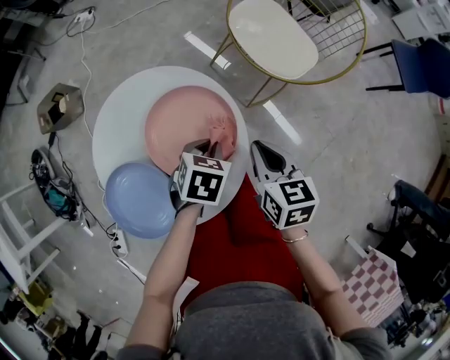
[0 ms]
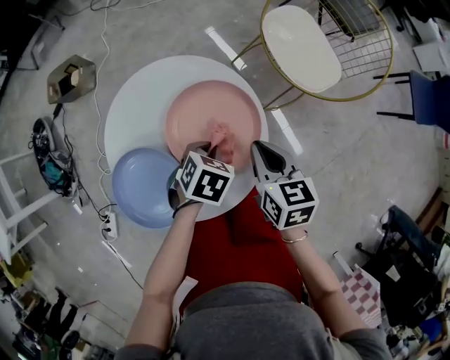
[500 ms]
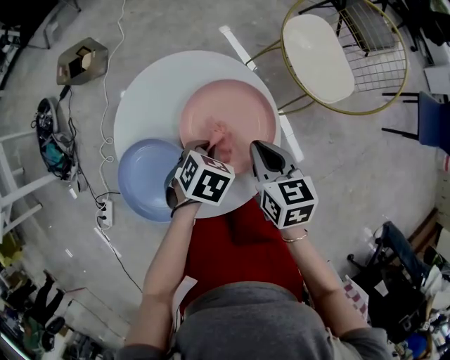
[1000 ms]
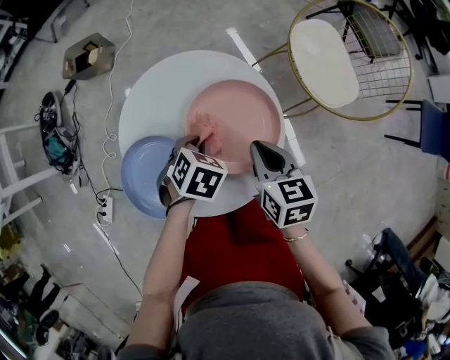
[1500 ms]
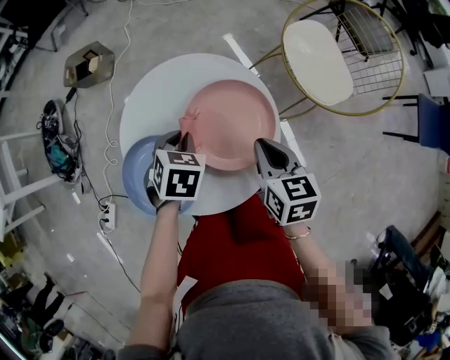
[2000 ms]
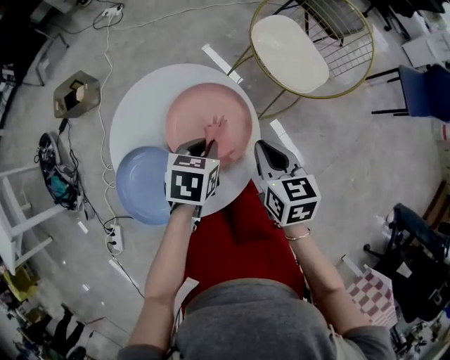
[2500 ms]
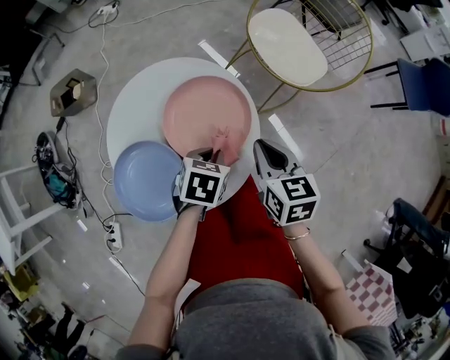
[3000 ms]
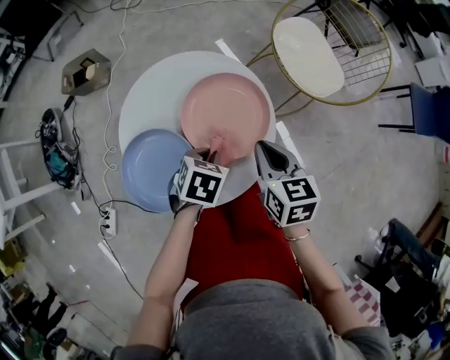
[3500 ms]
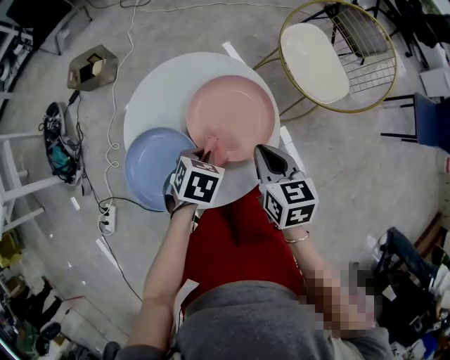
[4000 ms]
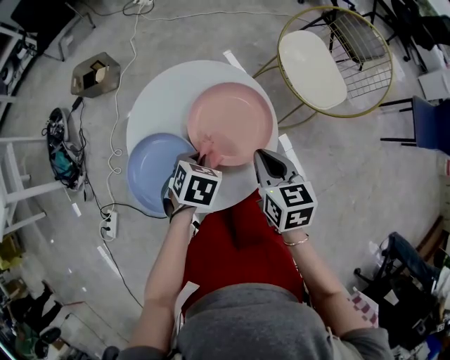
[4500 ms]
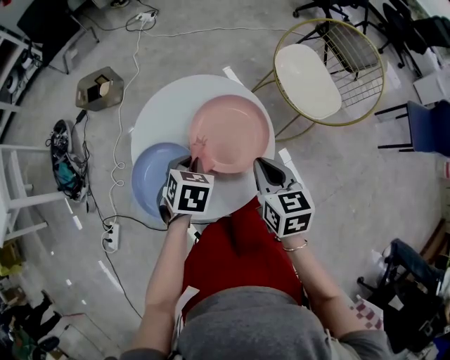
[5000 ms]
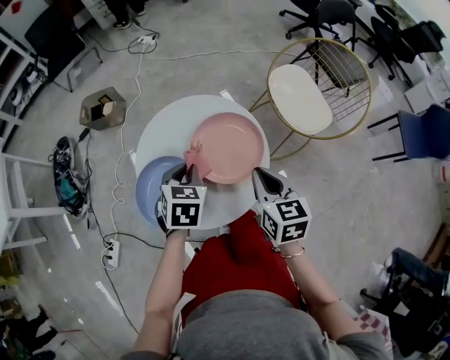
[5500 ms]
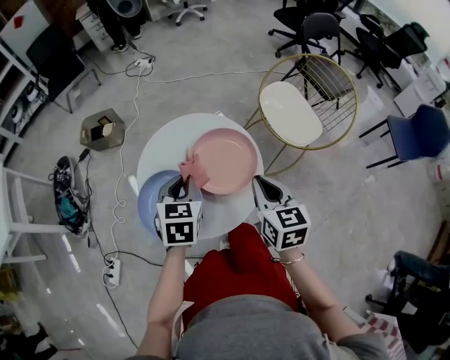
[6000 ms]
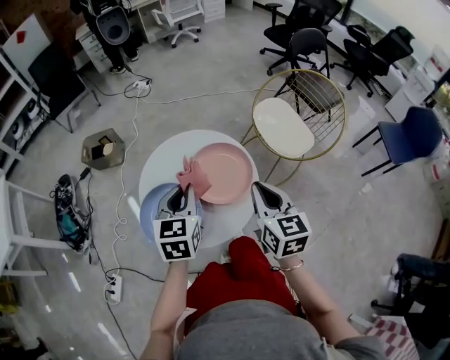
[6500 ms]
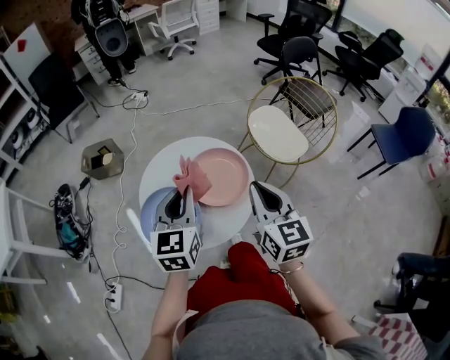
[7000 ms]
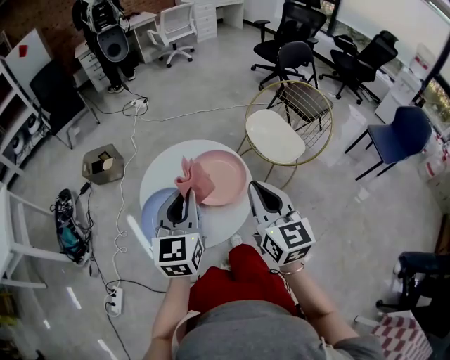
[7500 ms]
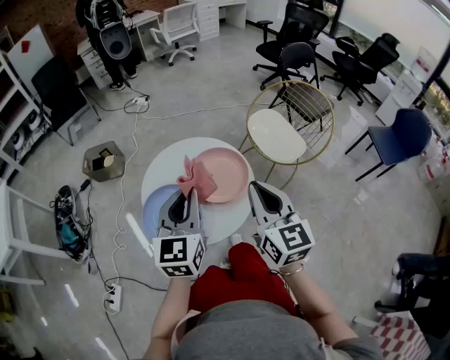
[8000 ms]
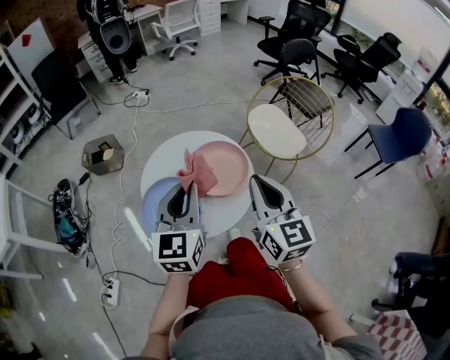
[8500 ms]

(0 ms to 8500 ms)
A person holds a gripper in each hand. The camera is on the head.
0 ms - 2000 ms: The right gripper changes place by roughly 10 cm, while the left gripper ends up roughly 20 cm from where it was, and rotates roughly 20 degrees.
4000 ms - 6500 ms: The right gripper shifts some 15 cm upward, and rotates approximately 20 degrees; the left gripper shifts some 20 cm upward, and points its fingers some 40 degrees further upward.
6500 ms - 8500 ms: The two grippers go some 10 cm upward and backward.

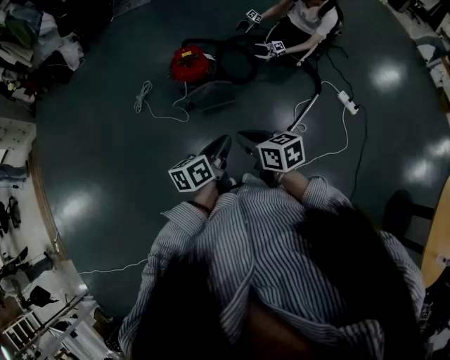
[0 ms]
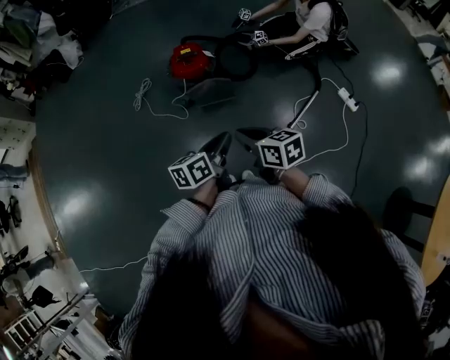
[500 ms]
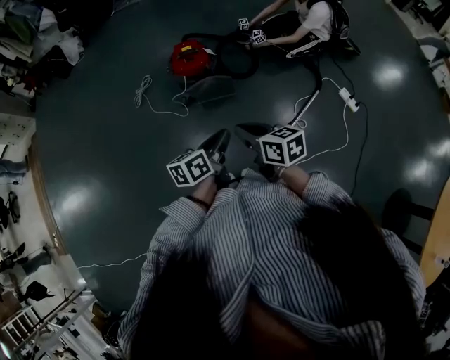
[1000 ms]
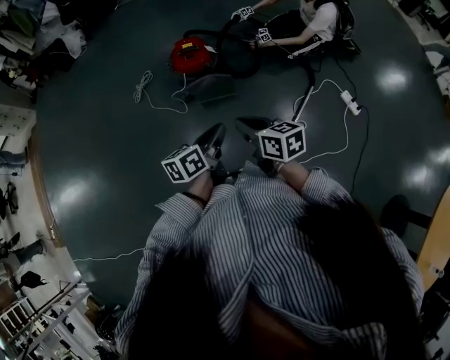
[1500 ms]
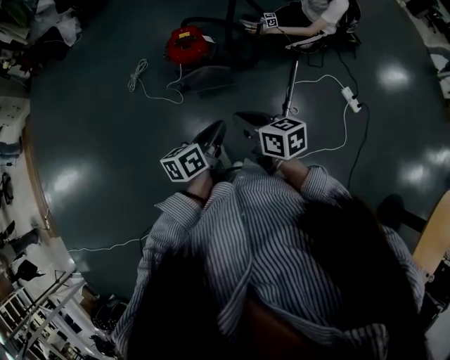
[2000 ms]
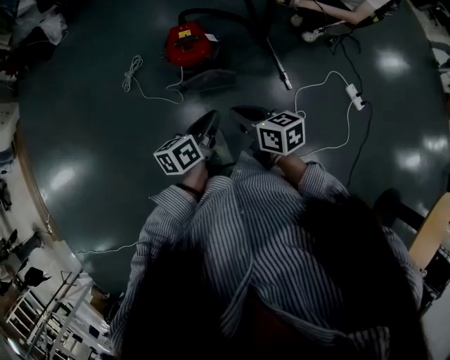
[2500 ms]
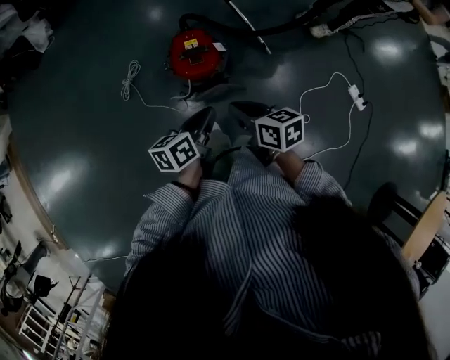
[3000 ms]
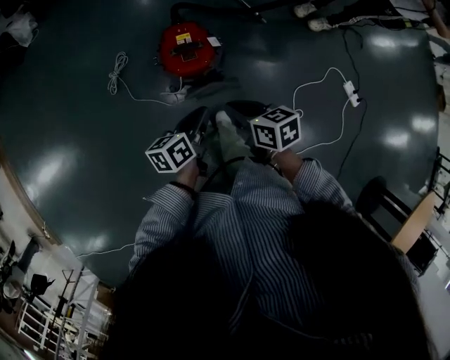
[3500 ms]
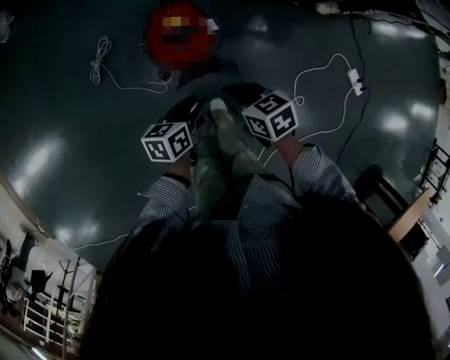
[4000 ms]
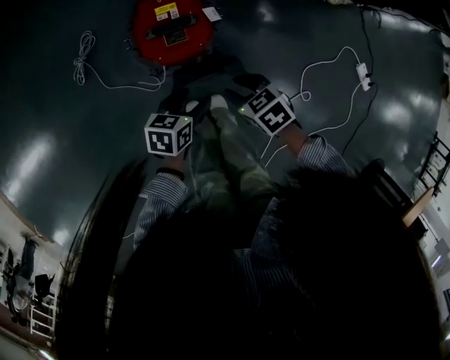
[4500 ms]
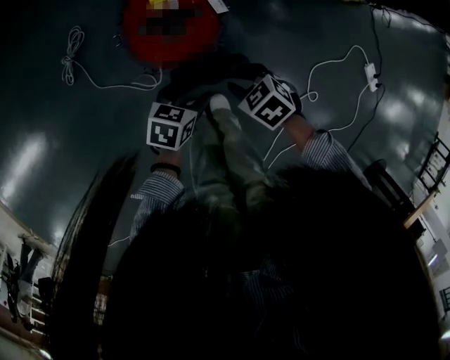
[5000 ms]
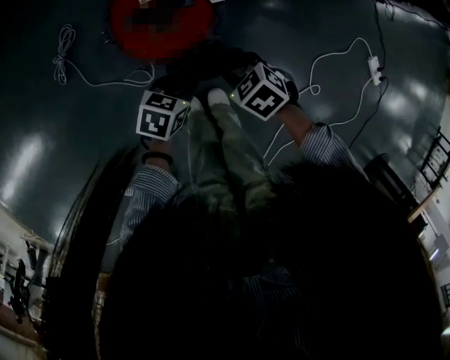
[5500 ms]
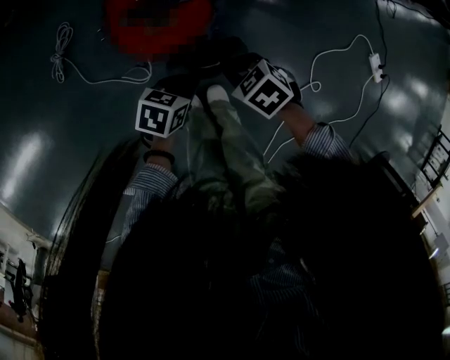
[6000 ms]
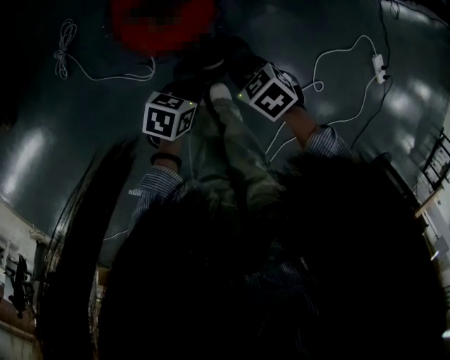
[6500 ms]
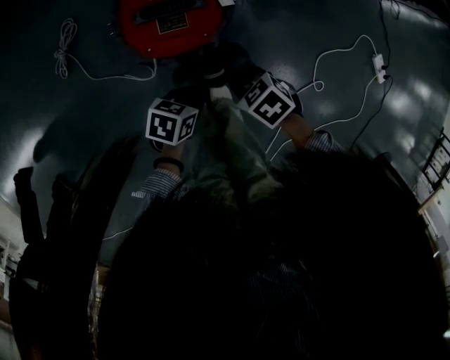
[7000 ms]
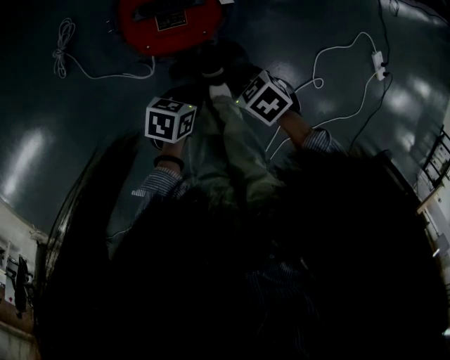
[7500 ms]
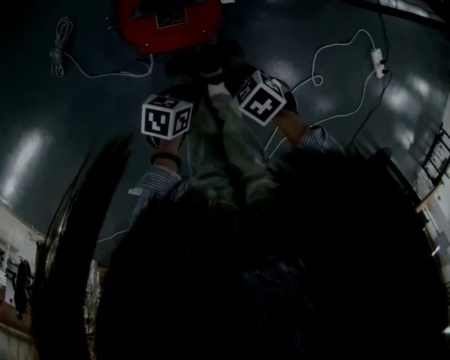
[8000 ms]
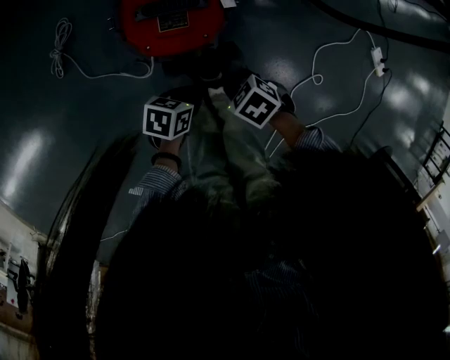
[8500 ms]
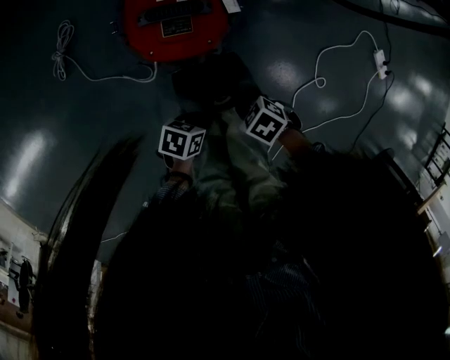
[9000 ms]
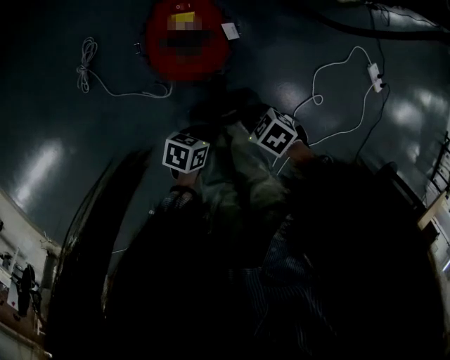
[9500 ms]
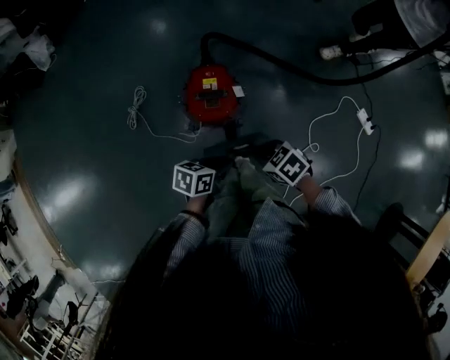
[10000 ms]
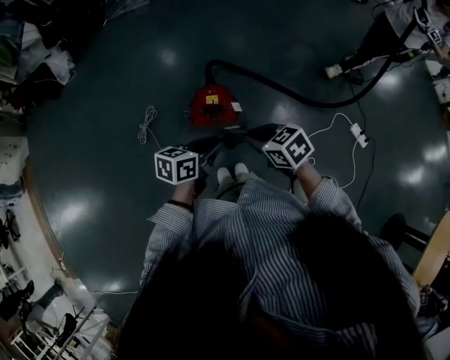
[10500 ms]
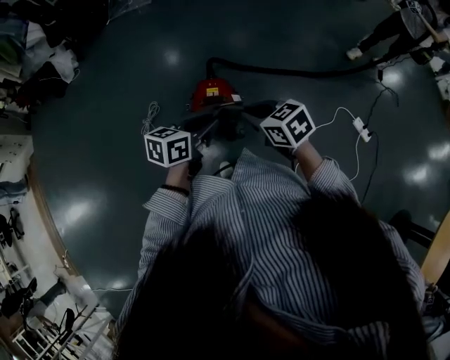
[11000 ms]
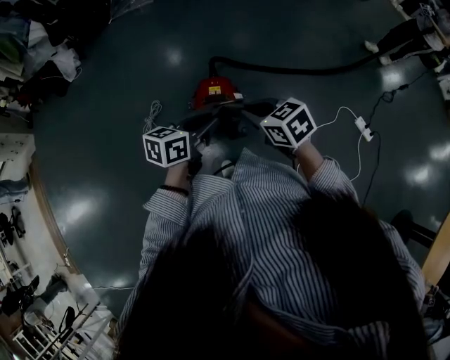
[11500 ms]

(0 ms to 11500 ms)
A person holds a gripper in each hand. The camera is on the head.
0 ms - 2000 ms: The right gripper ends up some 5 cm from where it was.
2000 ms - 4000 ms: Both grippers travel together forward and downward, approximately 40 cm. The right gripper rotates about 20 degrees, while the left gripper rotates roughly 20 degrees, and opens.
4000 ms - 6000 ms: The two grippers go some 25 cm downward. The left gripper swivels roughly 30 degrees, and closes its fingers. Meanwhile the right gripper rotates approximately 30 degrees, and opens, then closes once more.
6000 ms - 7500 ms: The right gripper changes place by some 5 cm.
7500 ms - 9500 ms: The grippers both shift upward by roughly 10 cm.
9500 ms - 11500 ms: Both grippers move upward, some 50 cm. The left gripper rotates about 40 degrees. Meanwhile the right gripper swivels some 40 degrees.

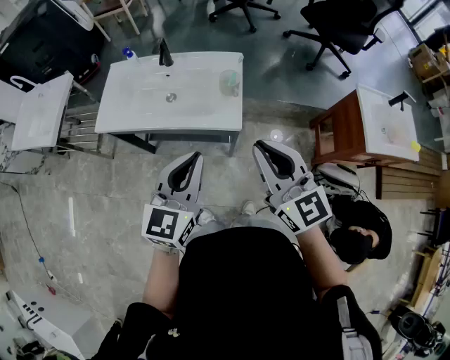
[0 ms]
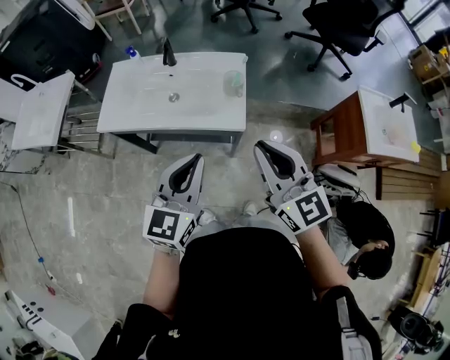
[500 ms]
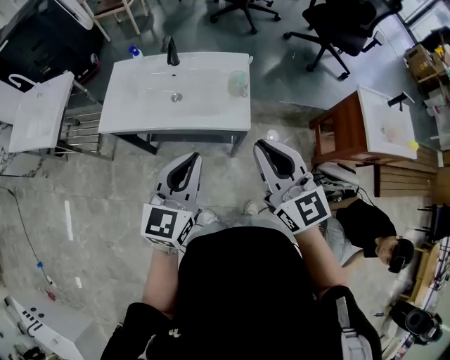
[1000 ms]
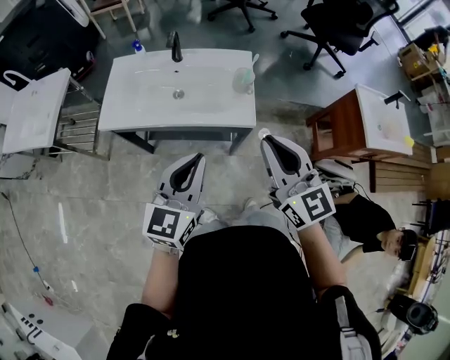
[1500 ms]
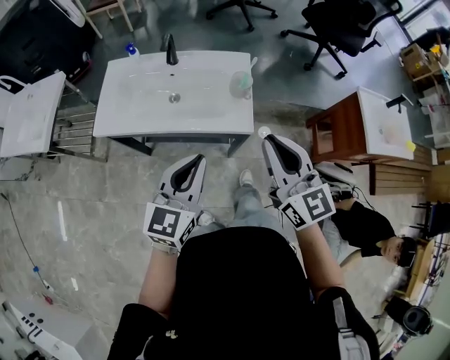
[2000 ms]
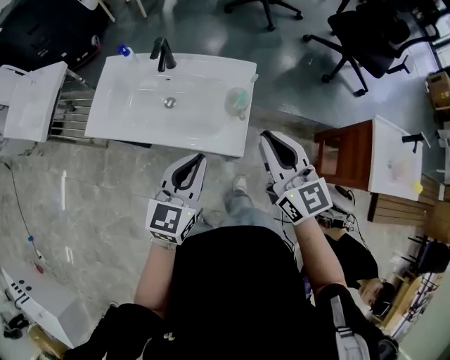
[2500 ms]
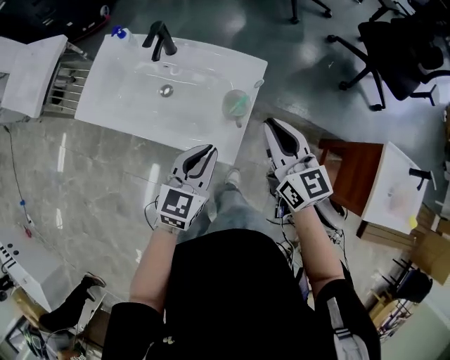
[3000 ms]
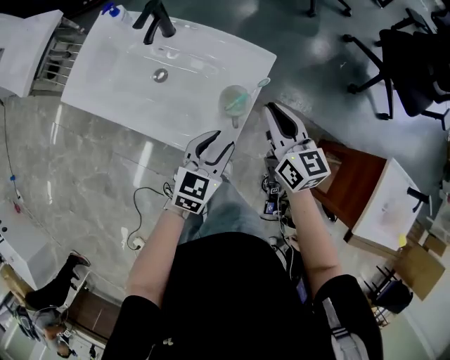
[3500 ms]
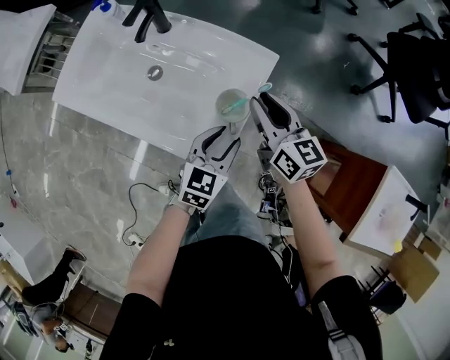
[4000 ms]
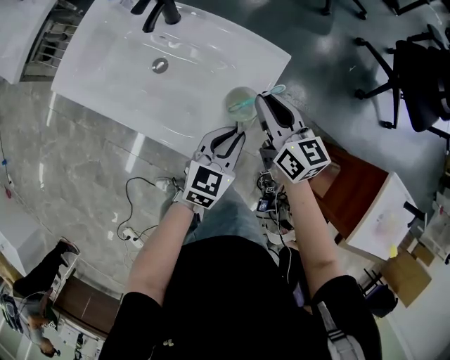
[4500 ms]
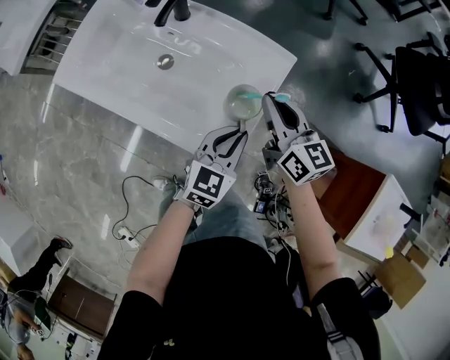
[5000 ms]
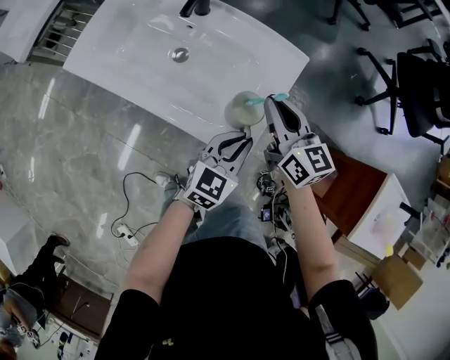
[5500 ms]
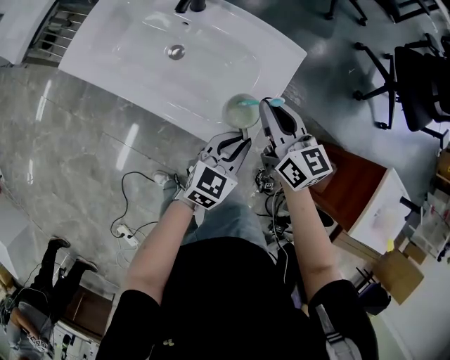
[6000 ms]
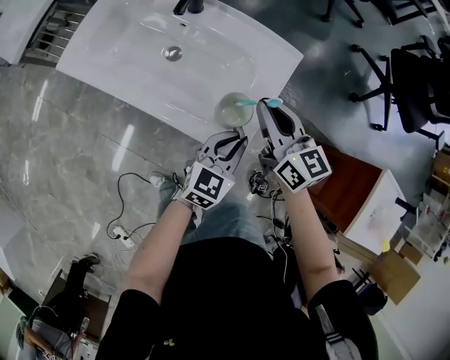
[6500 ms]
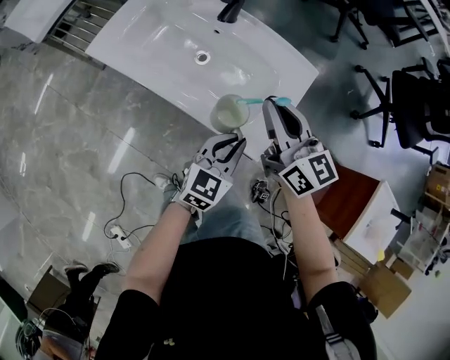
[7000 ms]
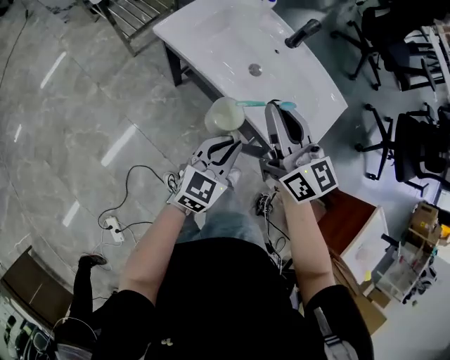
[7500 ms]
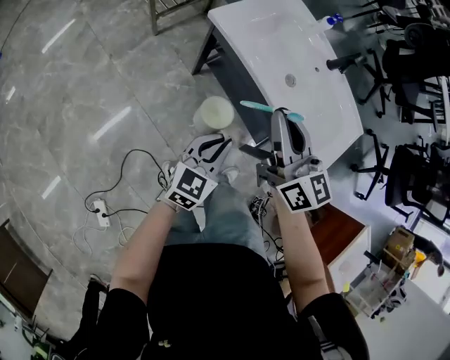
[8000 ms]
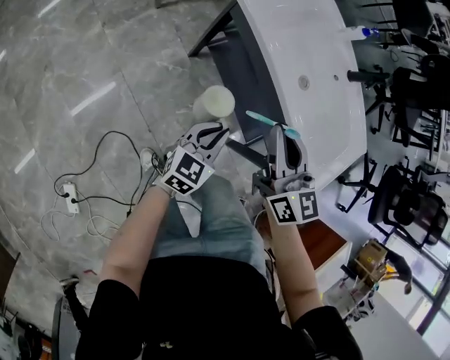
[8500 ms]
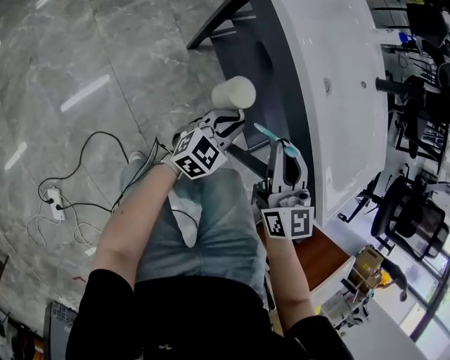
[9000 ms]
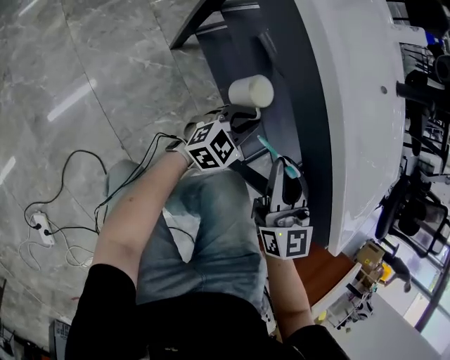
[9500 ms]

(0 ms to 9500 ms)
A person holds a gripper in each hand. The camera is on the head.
0 ms - 2000 ms: The right gripper ends up roughly 5 cm from where it was. Meanwhile the left gripper heads to the left, covering about 5 cm.
2000 ms - 4000 ms: The right gripper shifts about 40 cm forward and downward, and rotates about 30 degrees; the left gripper goes about 40 cm downward, forward and to the right, swivels about 20 degrees, and opens its fingers.
4000 ms - 5500 ms: The right gripper is displaced to the left by roughly 5 cm; the left gripper moves approximately 5 cm, and closes up.
5500 ms - 7500 ms: The right gripper shifts approximately 30 cm to the left and upward, while the left gripper goes about 25 cm to the left.
7500 ms - 9500 ms: Both grippers move downward, roughly 35 cm. The right gripper changes its angle by approximately 30 degrees.
